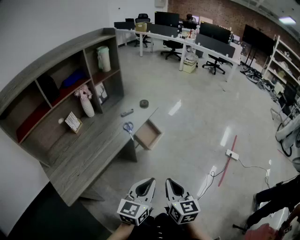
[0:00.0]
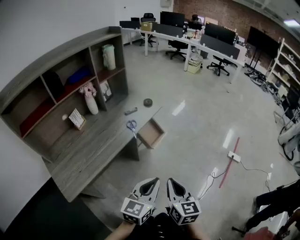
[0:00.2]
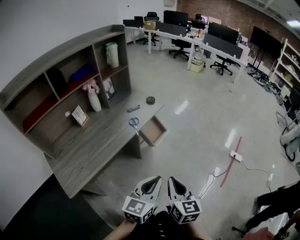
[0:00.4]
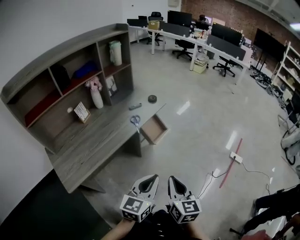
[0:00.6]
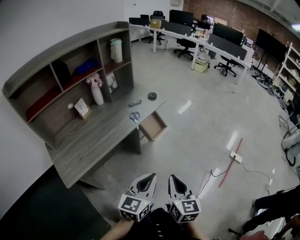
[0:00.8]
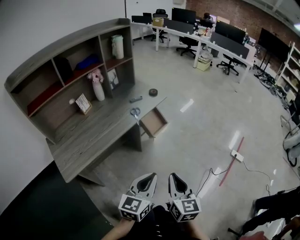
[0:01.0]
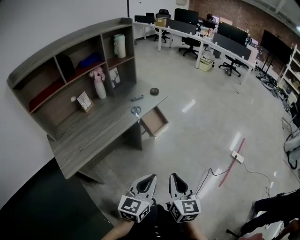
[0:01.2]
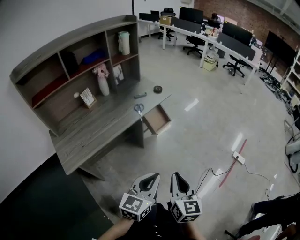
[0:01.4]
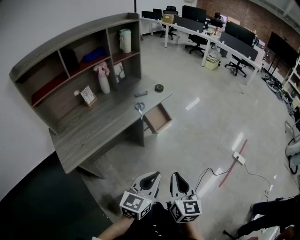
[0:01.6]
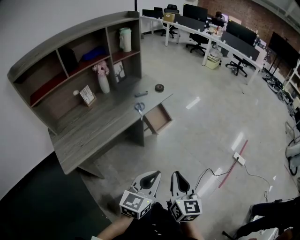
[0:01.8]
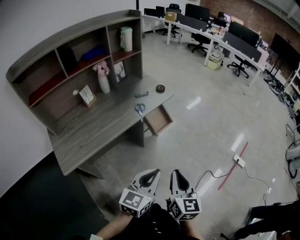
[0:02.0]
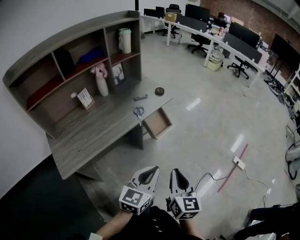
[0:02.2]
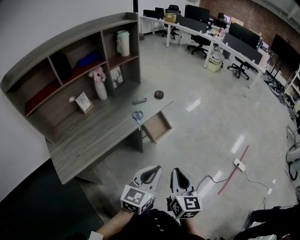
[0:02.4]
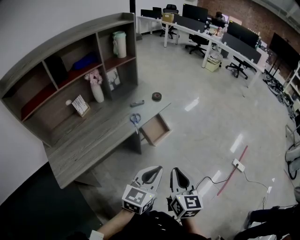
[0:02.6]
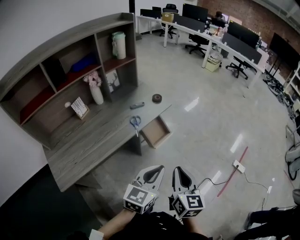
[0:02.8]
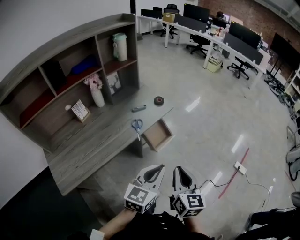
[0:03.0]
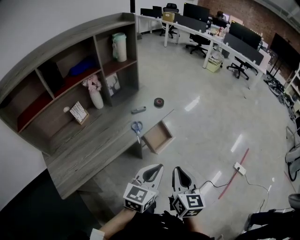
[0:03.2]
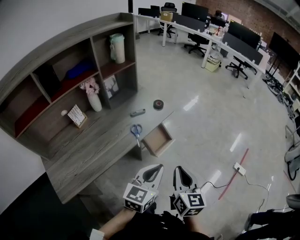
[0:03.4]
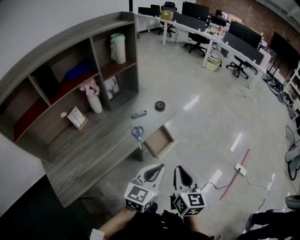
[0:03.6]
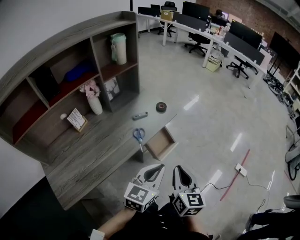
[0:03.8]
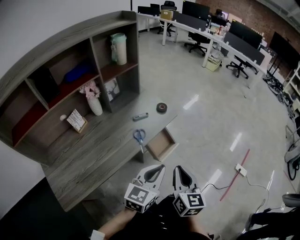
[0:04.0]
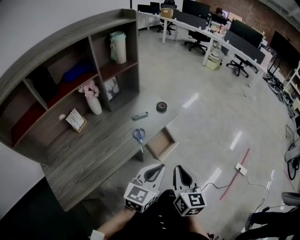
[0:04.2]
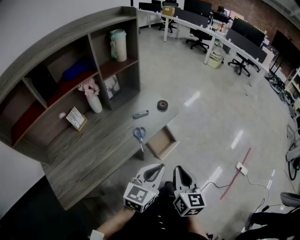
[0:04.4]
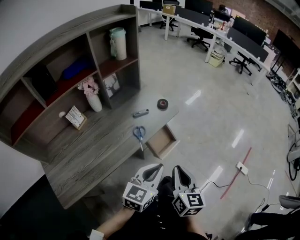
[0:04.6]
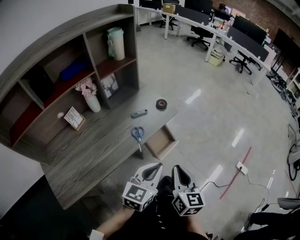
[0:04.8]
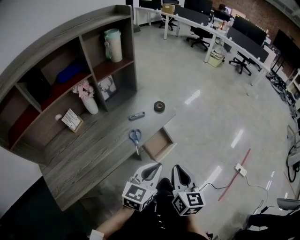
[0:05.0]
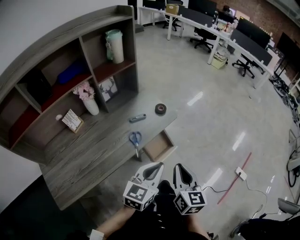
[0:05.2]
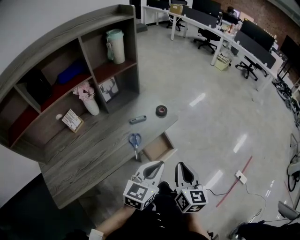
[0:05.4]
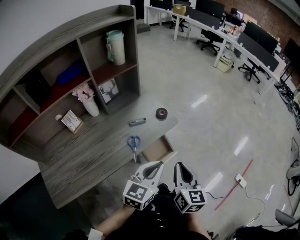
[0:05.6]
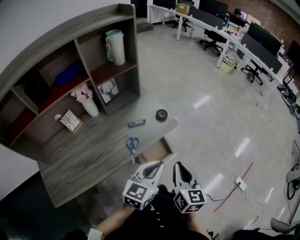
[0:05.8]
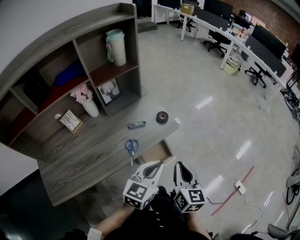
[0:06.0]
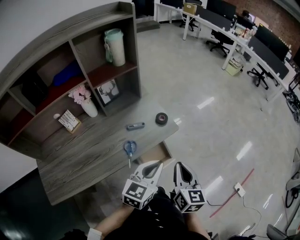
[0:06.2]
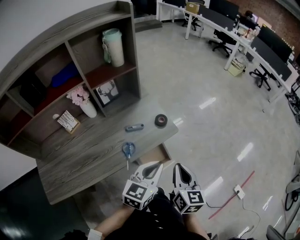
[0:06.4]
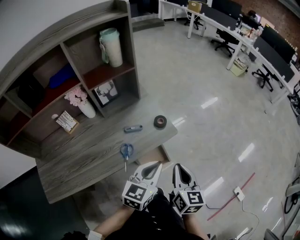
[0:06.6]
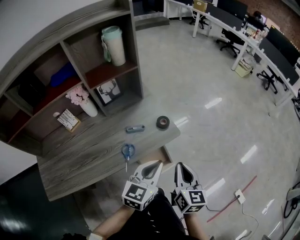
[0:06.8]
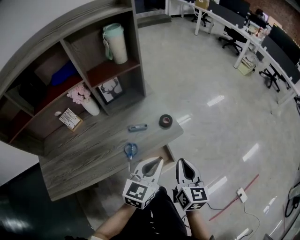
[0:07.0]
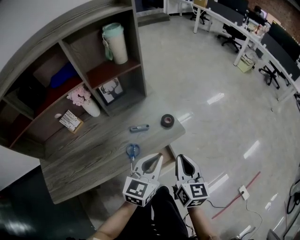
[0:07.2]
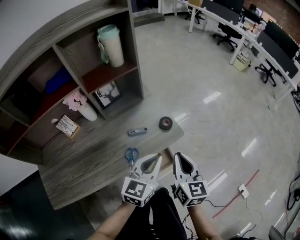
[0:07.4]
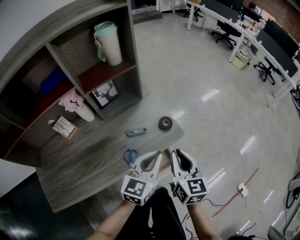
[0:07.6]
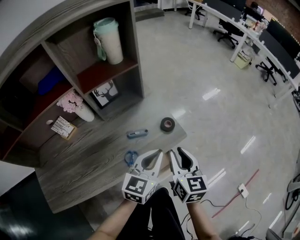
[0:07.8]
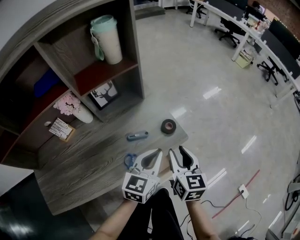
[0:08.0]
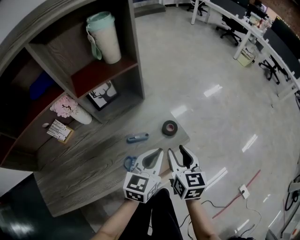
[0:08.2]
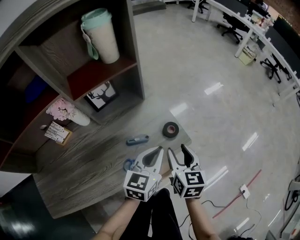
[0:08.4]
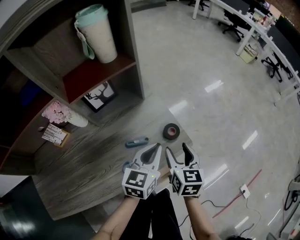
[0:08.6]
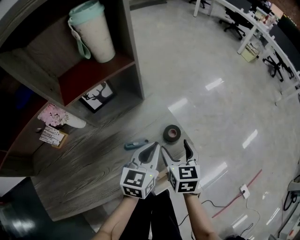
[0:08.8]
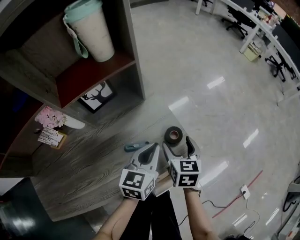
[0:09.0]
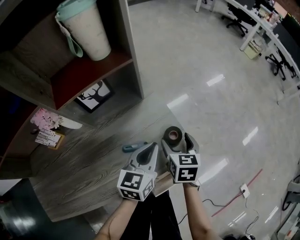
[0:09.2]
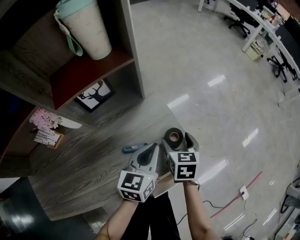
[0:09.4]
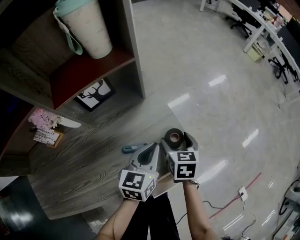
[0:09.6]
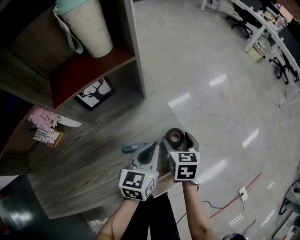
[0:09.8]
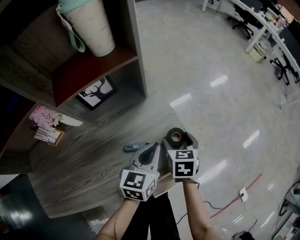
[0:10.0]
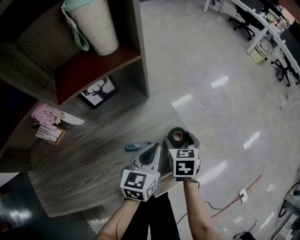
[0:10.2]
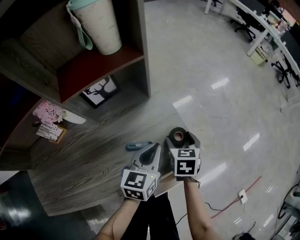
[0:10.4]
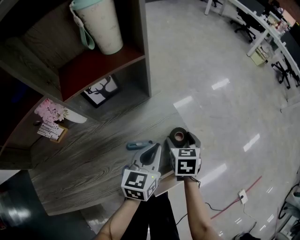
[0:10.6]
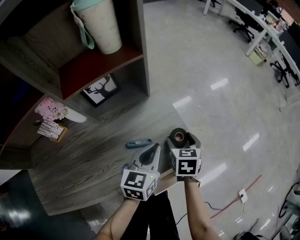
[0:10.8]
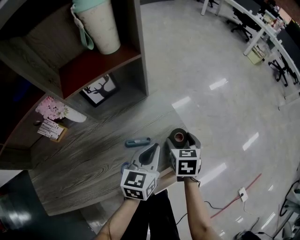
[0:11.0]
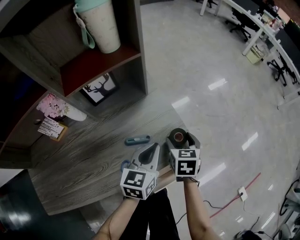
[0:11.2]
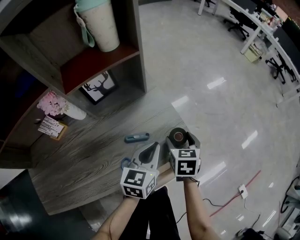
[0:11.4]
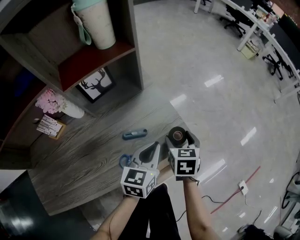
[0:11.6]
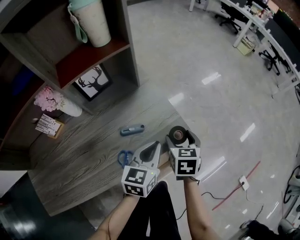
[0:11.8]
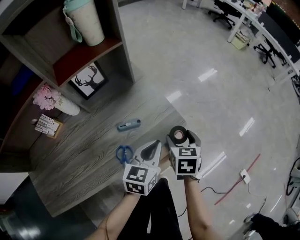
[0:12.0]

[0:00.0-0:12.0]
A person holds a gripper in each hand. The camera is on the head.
0:00.0 to 0:01.6: Both grippers move backward, roughly 5 cm.
0:01.6 to 0:03.0: Both grippers move forward, approximately 20 cm.
0:03.0 to 0:04.4: Both grippers travel together forward and to the left, roughly 10 cm.
0:04.4 to 0:06.0: The grippers both shift forward by approximately 15 cm.
0:06.0 to 0:07.6: The two grippers go approximately 10 cm forward.
0:07.6 to 0:09.0: The grippers both shift forward and downward by some 20 cm. The right gripper opens its fingers.
0:09.0 to 0:10.4: The right gripper moves some 5 cm.
0:10.4 to 0:12.0: The grippers both shift backward and to the right by approximately 10 cm.

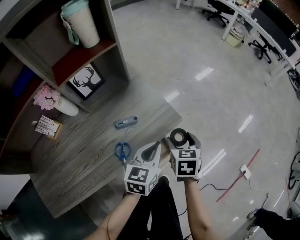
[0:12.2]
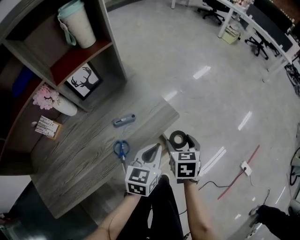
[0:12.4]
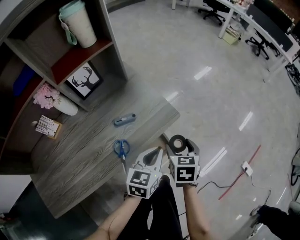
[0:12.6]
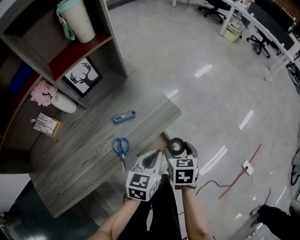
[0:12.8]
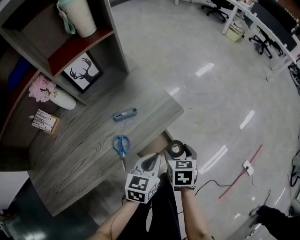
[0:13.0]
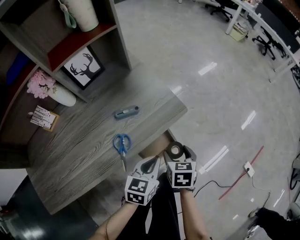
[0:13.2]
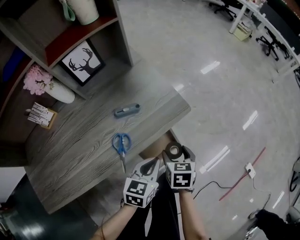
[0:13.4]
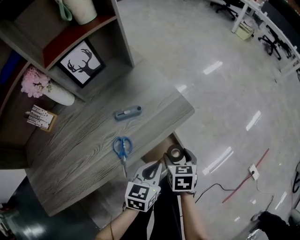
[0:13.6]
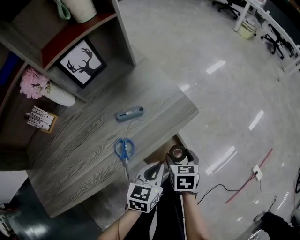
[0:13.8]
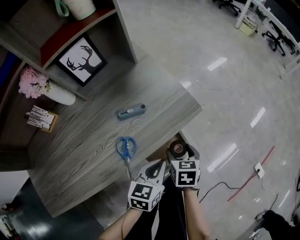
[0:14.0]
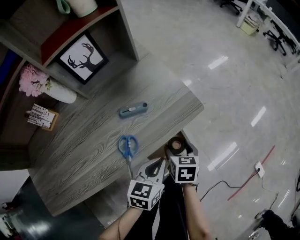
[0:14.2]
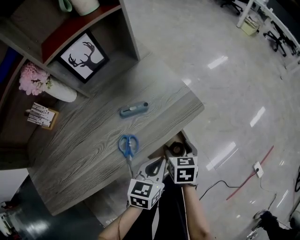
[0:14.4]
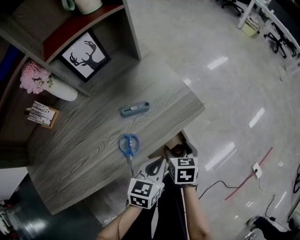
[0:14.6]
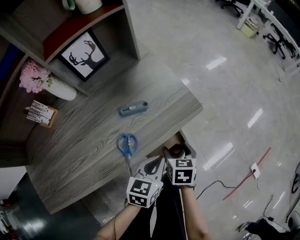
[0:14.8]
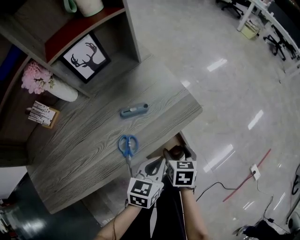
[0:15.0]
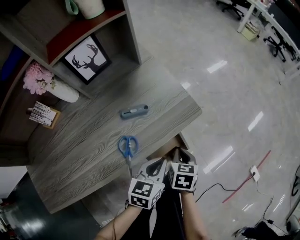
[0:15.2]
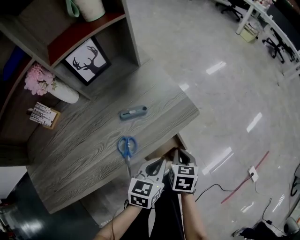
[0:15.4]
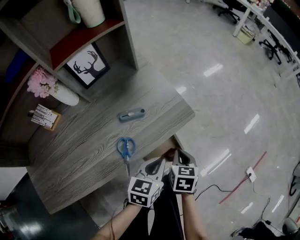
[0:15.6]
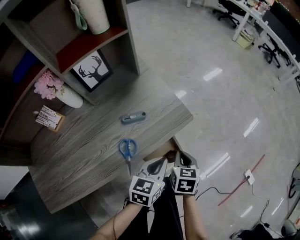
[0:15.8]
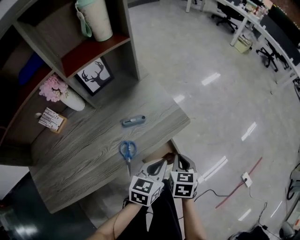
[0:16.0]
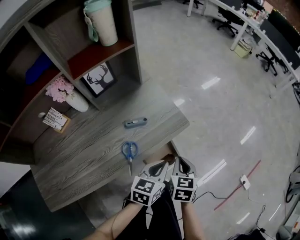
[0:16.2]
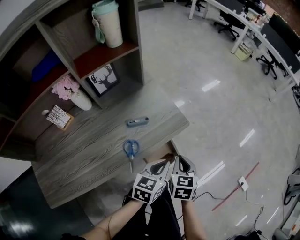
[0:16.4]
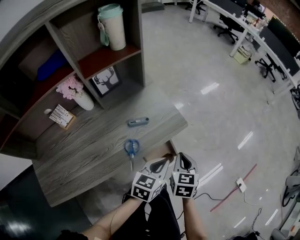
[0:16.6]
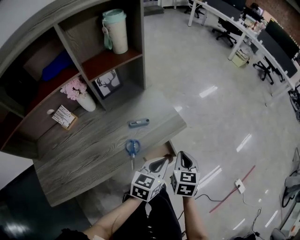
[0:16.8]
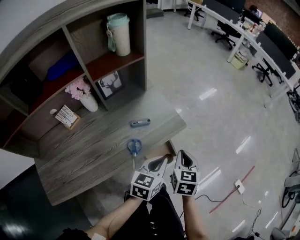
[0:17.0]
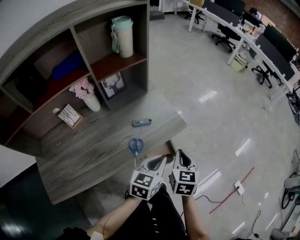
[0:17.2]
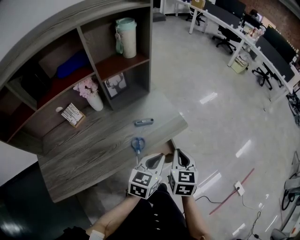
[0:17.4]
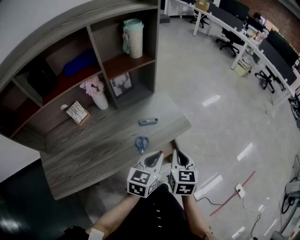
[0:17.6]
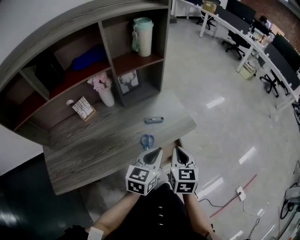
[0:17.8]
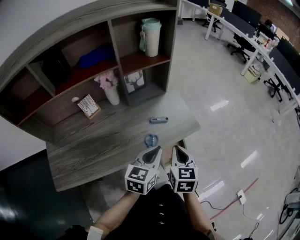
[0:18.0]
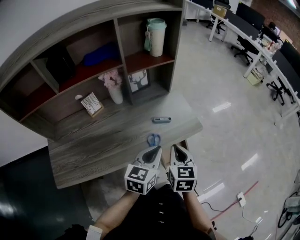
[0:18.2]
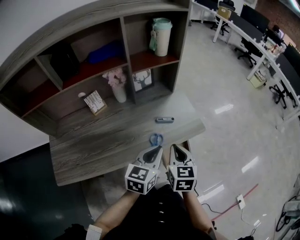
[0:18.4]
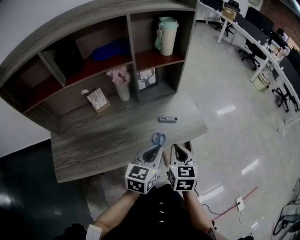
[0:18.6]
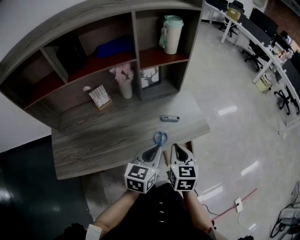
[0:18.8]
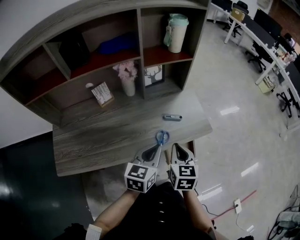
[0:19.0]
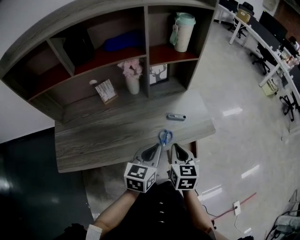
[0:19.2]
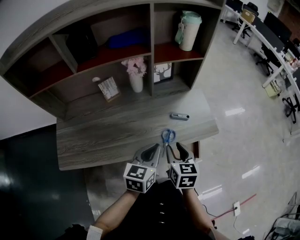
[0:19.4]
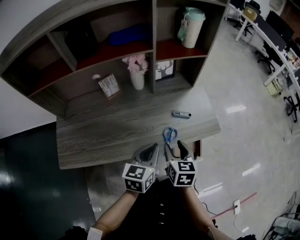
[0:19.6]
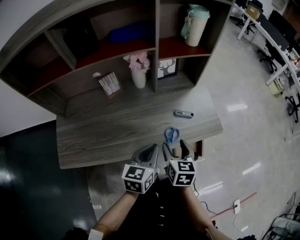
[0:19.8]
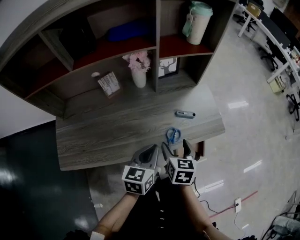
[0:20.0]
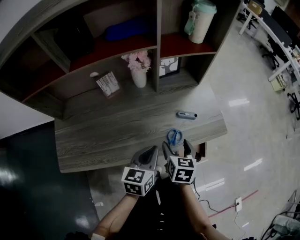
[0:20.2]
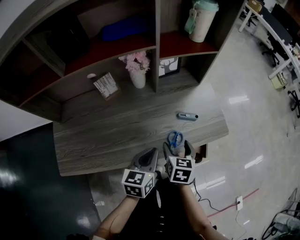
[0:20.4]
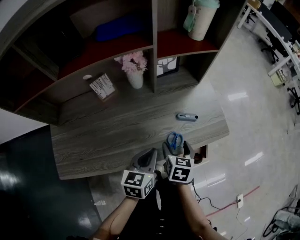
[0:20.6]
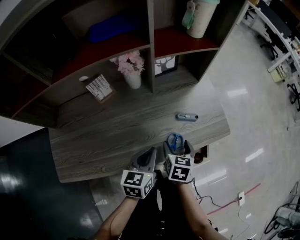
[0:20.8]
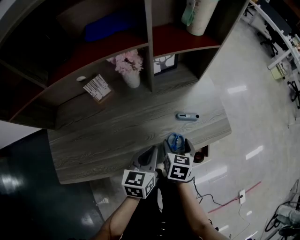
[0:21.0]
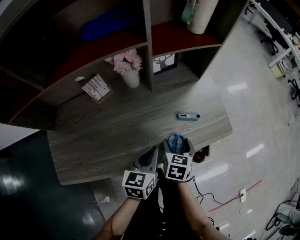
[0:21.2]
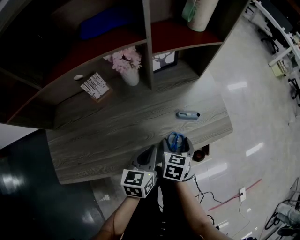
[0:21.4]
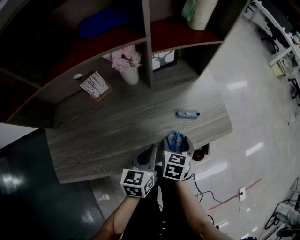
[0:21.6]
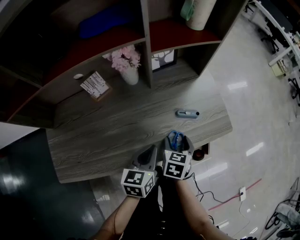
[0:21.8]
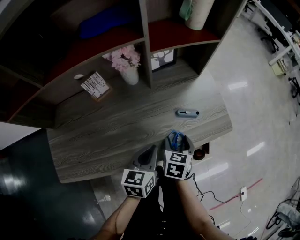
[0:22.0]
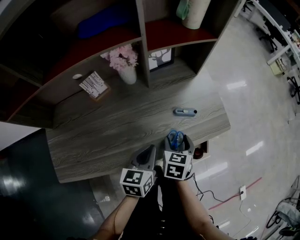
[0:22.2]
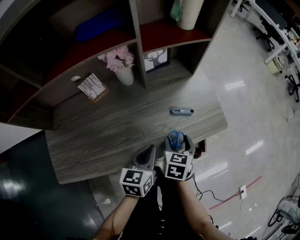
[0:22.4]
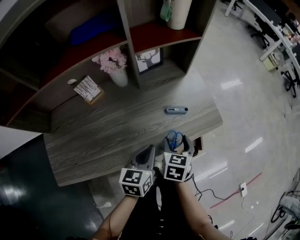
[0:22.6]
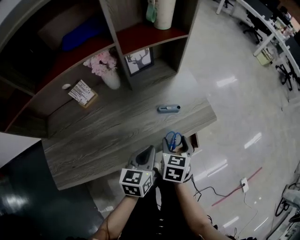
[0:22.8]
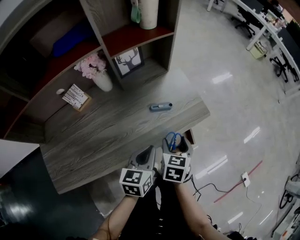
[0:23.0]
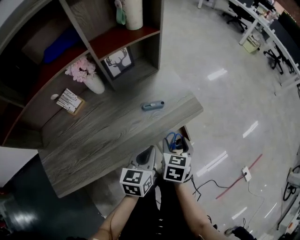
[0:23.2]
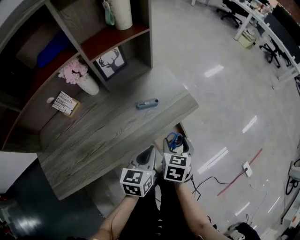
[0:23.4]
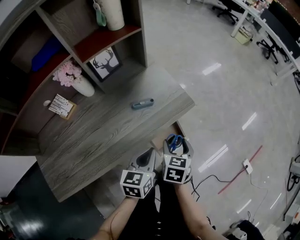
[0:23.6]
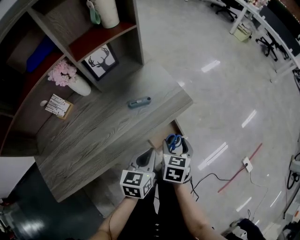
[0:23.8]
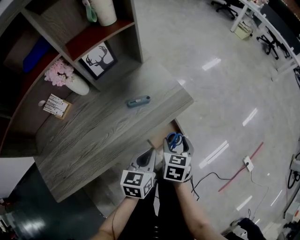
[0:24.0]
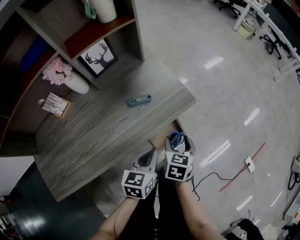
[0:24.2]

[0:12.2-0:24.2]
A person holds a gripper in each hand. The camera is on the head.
0:12.2 to 0:13.8: Both grippers travel together downward and backward, approximately 15 cm.
0:13.8 to 0:15.2: The right gripper closes its fingers.
0:15.2 to 0:16.6: Both grippers move upward, approximately 15 cm.
0:16.6 to 0:18.2: Both grippers move to the left and upward, about 15 cm. The left gripper turns by roughly 20 degrees.
0:18.2 to 0:19.8: The right gripper is displaced to the left and downward by about 10 cm, and opens, while the left gripper heads to the left, covering some 10 cm.
0:19.8 to 0:21.2: The two grippers go roughly 10 cm downward and forward.
0:21.2 to 0:22.6: The right gripper shifts by roughly 5 cm.
0:22.6 to 0:24.2: The two grippers go approximately 15 cm to the right.
